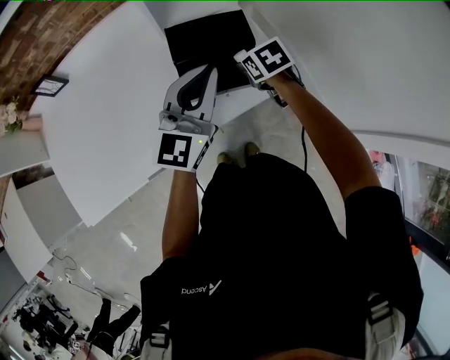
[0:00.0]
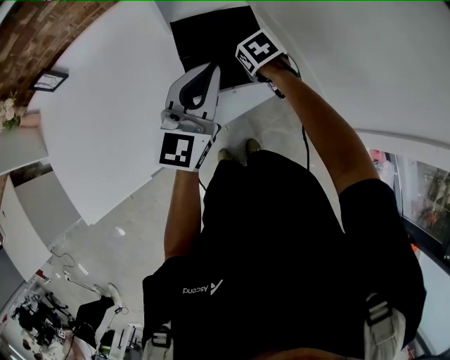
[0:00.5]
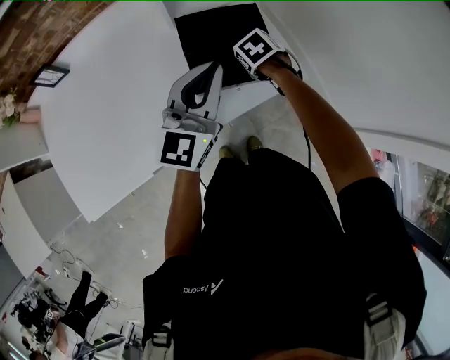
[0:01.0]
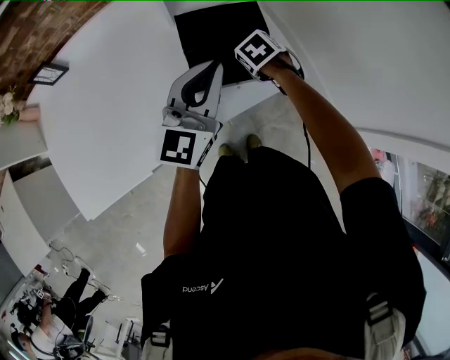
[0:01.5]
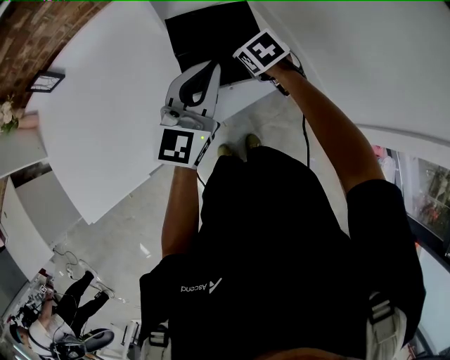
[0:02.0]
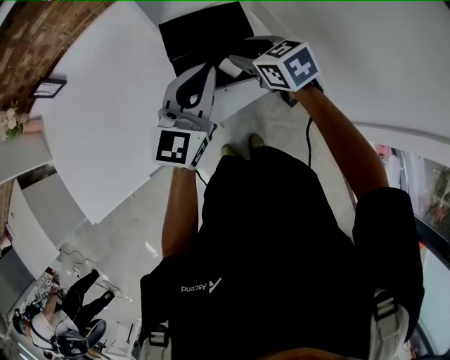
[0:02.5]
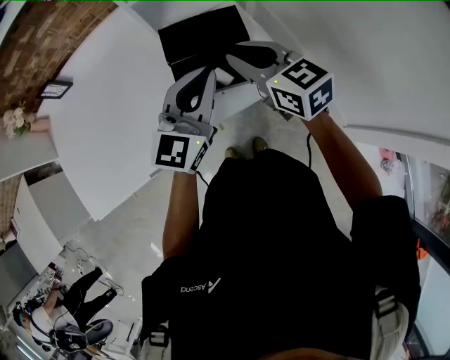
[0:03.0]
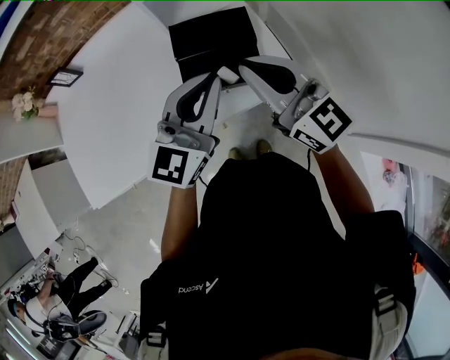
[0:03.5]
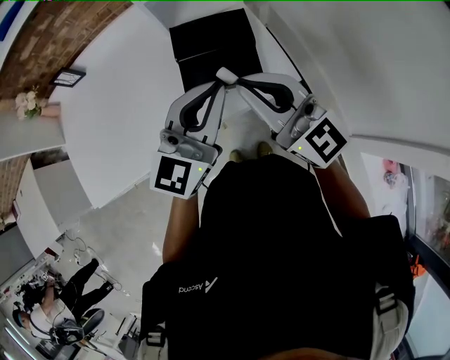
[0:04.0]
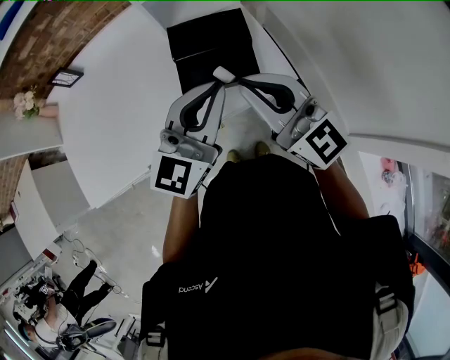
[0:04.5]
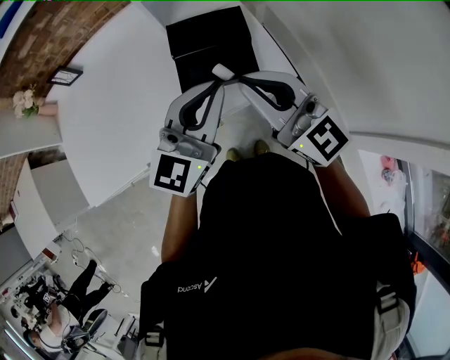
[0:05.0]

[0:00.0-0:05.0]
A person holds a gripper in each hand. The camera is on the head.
0:00.0 to 0:02.5: The right gripper moves upward, about 5 cm, and changes its angle by roughly 20 degrees.
0:02.5 to 0:05.0: The right gripper travels upward and backward by approximately 25 cm, points its fingers about 50 degrees further upward, and closes its fingers. Meanwhile the left gripper travels backward and upward by about 10 cm.

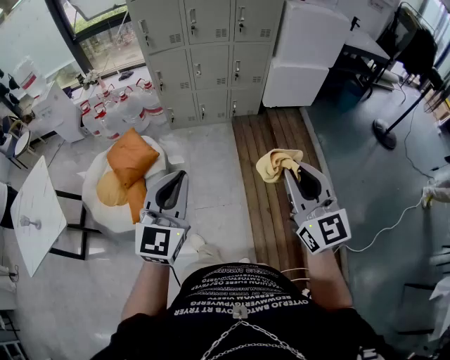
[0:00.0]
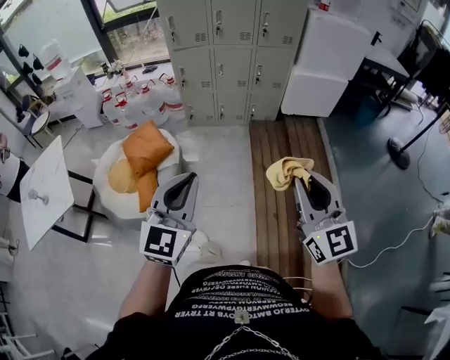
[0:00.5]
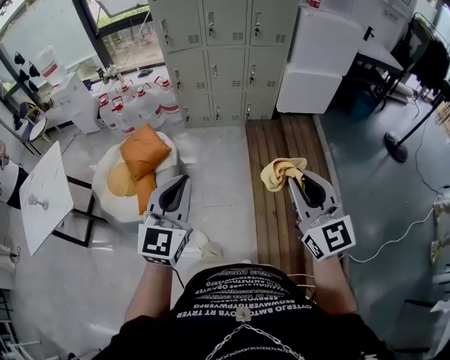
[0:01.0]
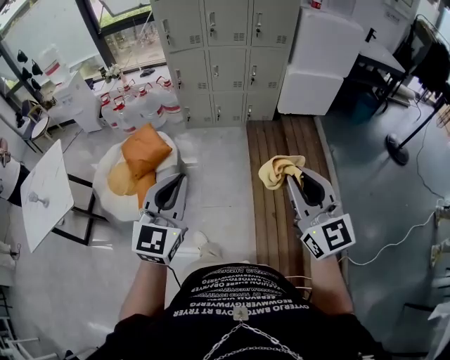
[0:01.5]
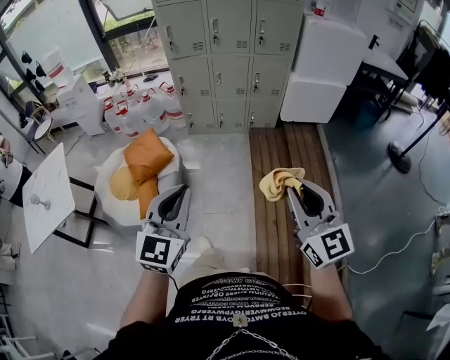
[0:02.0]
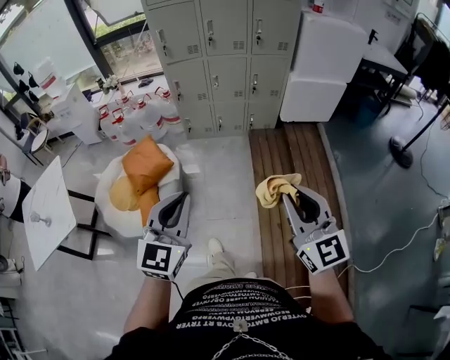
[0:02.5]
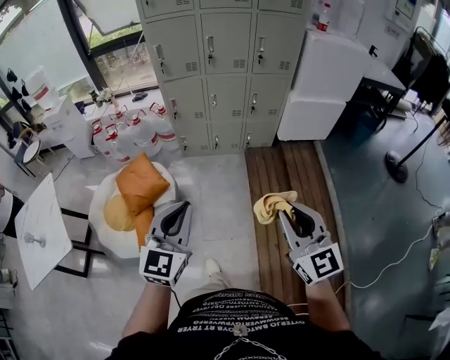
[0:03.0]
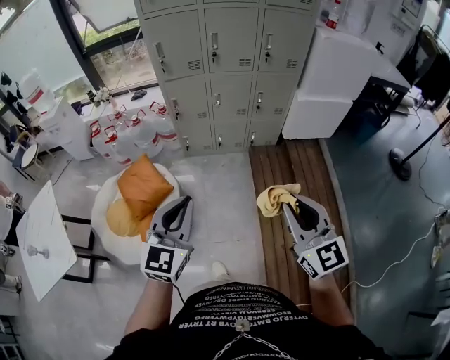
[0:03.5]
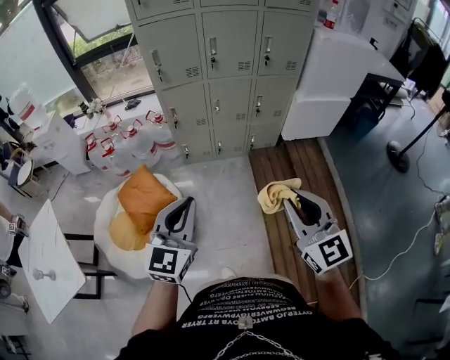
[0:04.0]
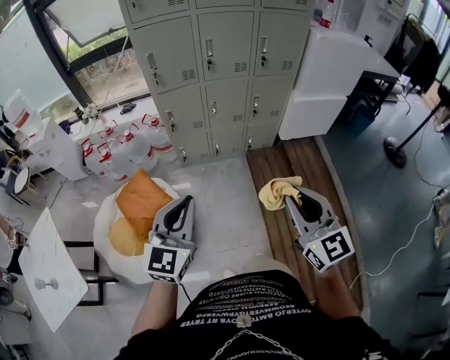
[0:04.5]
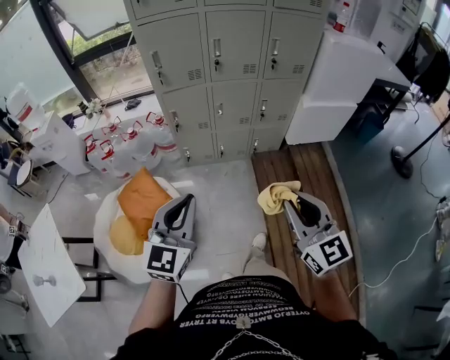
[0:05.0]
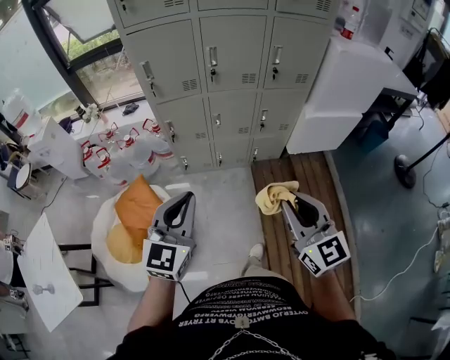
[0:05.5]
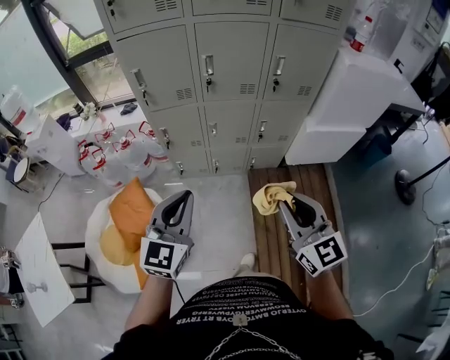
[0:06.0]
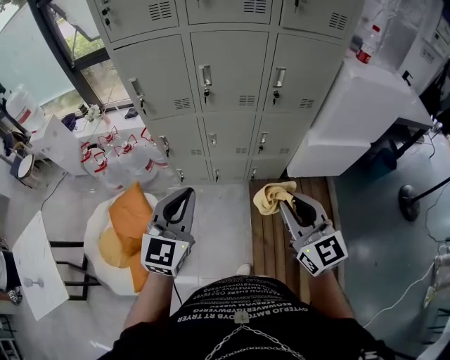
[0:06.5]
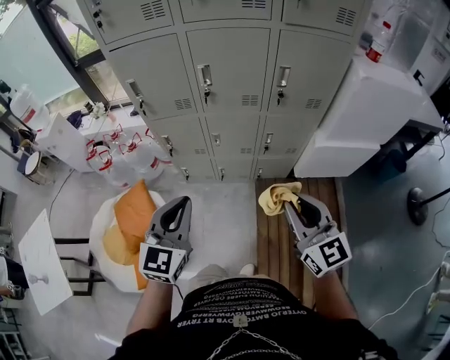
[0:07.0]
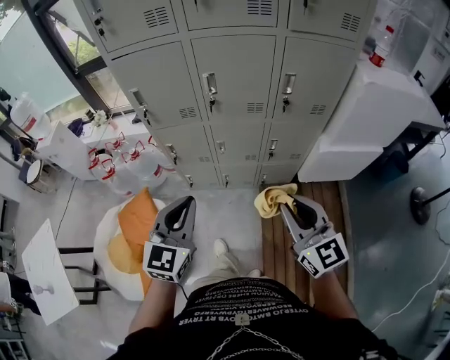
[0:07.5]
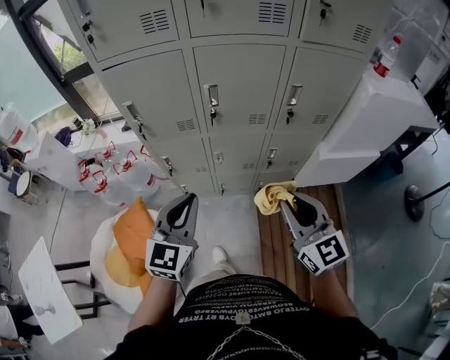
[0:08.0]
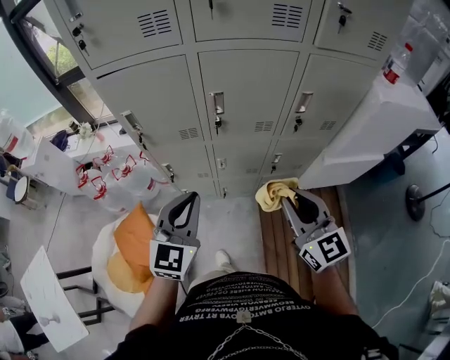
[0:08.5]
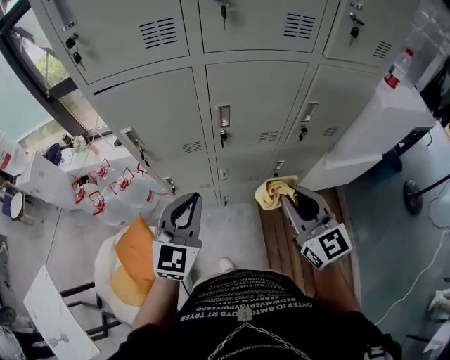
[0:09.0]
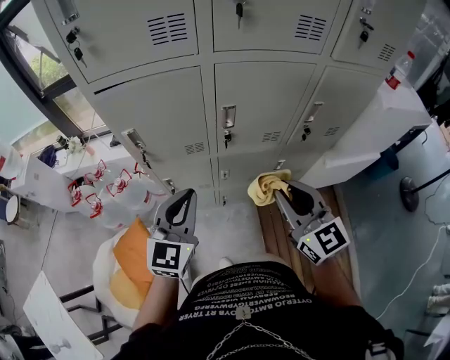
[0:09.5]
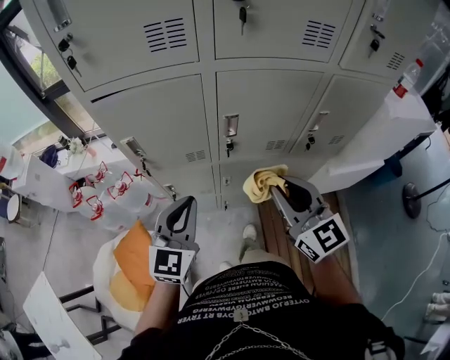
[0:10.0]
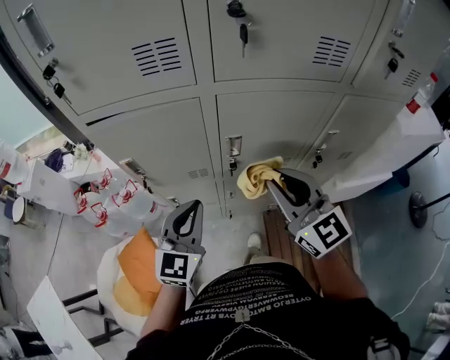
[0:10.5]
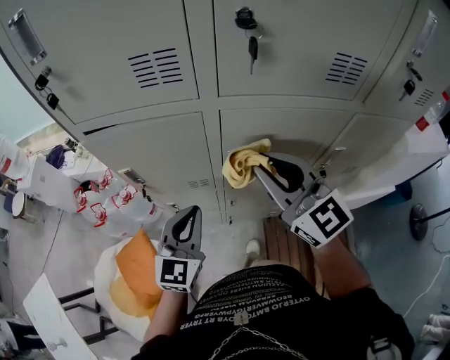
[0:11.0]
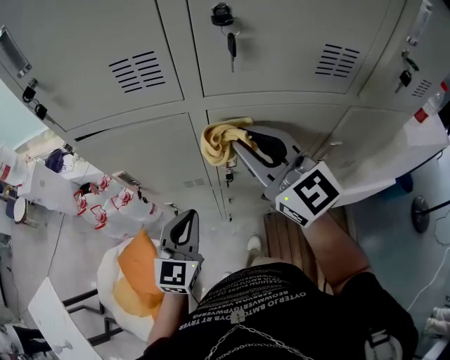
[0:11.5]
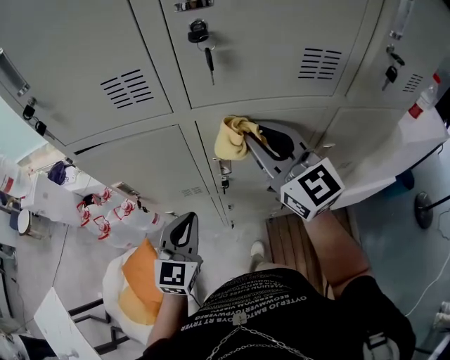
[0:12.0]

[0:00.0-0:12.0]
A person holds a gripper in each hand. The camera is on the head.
0:00.0 to 0:02.0: The left gripper shifts approximately 5 cm backward. Meanwhile the right gripper moves some 5 cm.
0:02.0 to 0:04.0: The left gripper goes some 30 cm forward. Meanwhile the right gripper heads forward and to the left, covering some 30 cm.
0:04.0 to 0:06.0: The two grippers go approximately 25 cm forward.
0:06.0 to 0:08.0: Both grippers travel together forward, some 20 cm.
0:08.0 to 0:10.0: The two grippers go some 20 cm forward and to the left.
0:10.0 to 0:12.0: The left gripper heads forward, covering roughly 10 cm. Meanwhile the right gripper travels forward and upward by roughly 20 cm.

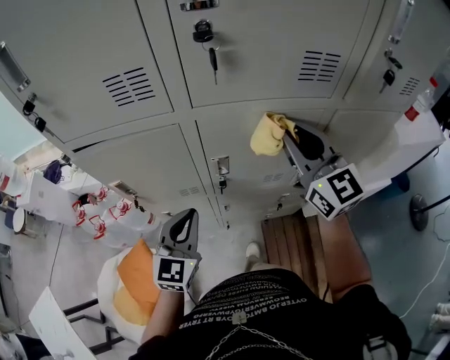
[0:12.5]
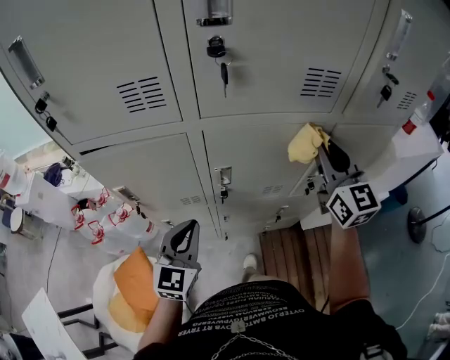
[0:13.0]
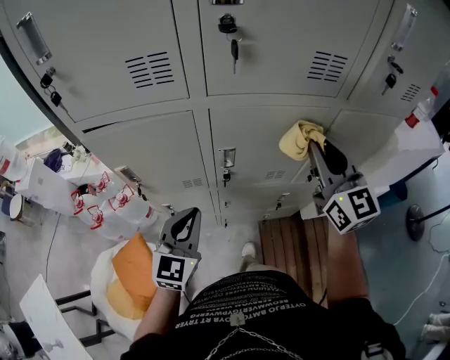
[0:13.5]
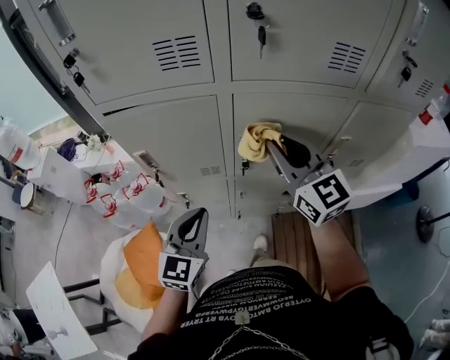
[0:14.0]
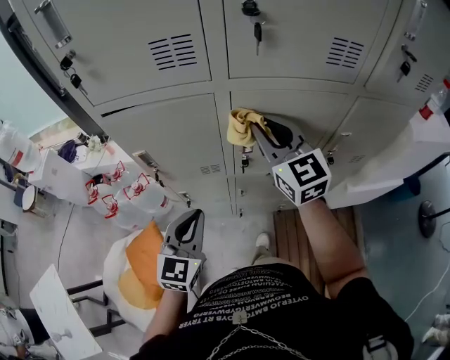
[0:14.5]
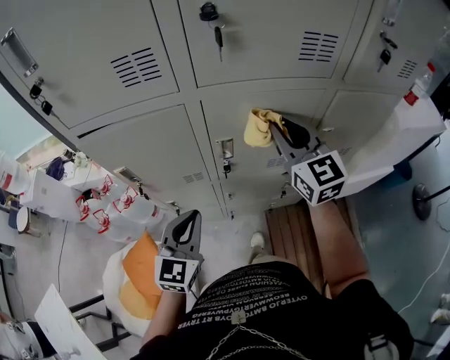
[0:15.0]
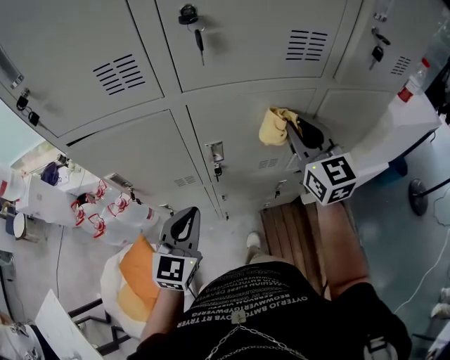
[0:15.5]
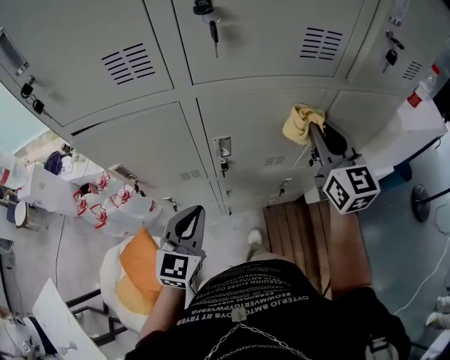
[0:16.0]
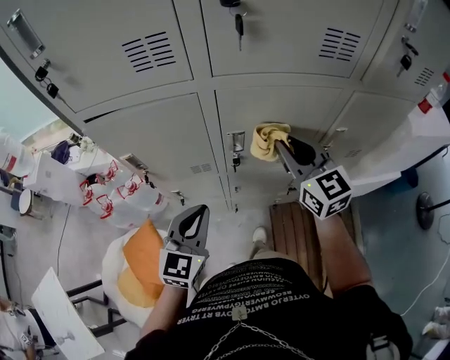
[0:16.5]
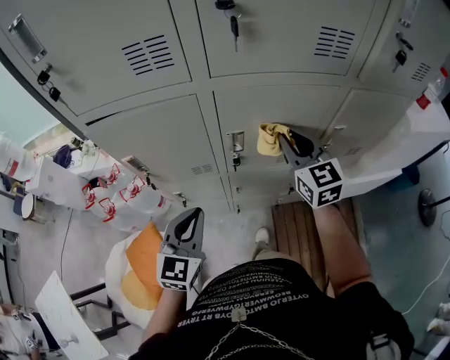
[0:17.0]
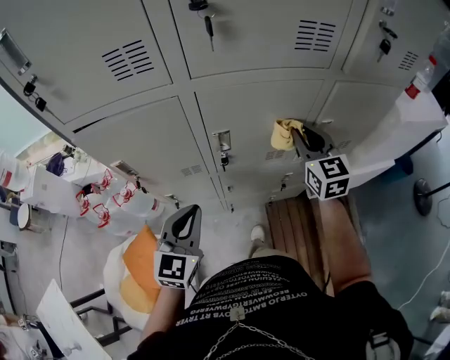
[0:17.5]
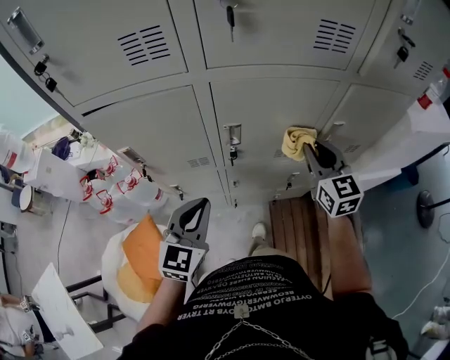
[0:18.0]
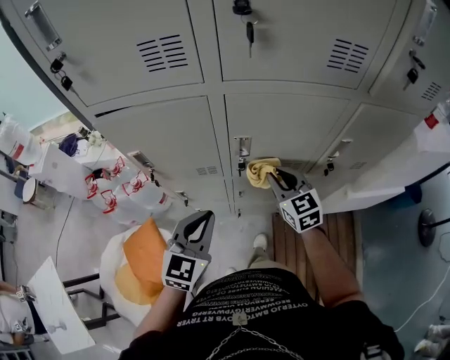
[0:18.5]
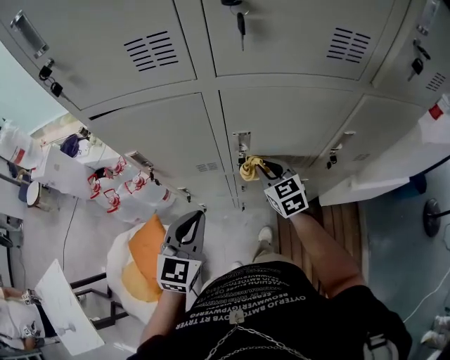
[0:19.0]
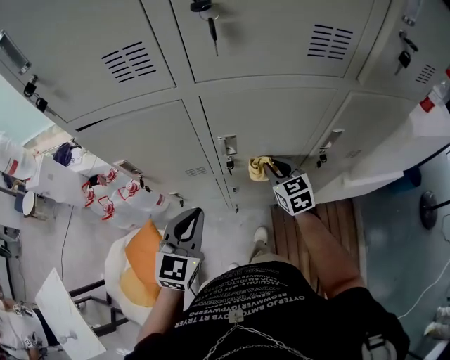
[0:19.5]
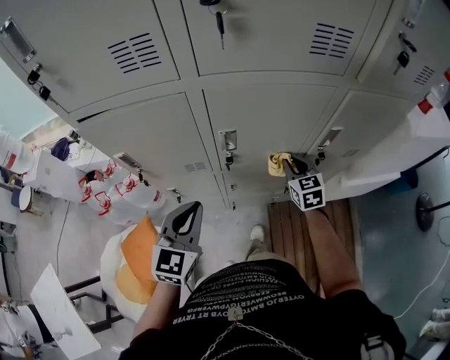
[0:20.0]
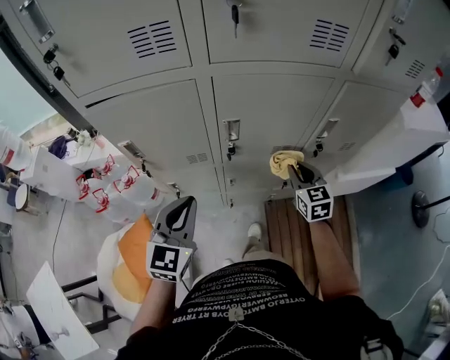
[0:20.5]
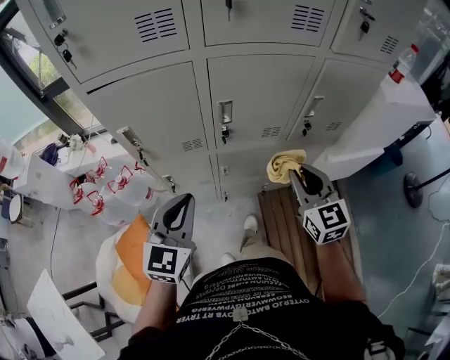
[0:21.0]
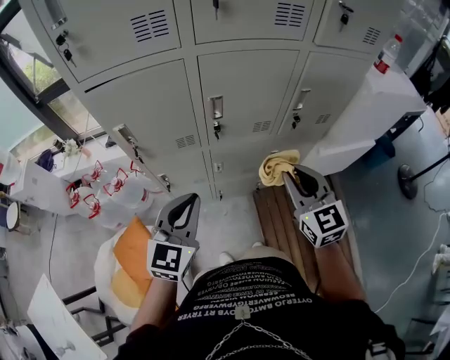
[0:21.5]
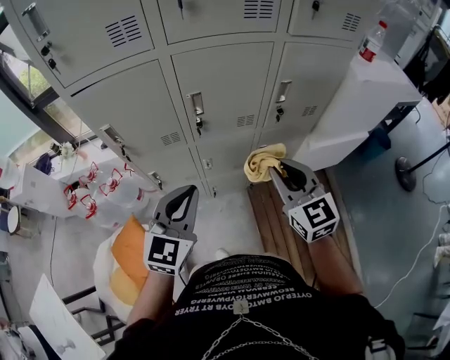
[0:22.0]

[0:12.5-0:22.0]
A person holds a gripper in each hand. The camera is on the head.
0:12.5 to 0:14.5: The right gripper moves to the left, approximately 10 cm; the left gripper is displaced backward by roughly 5 cm.
0:14.5 to 0:16.5: The right gripper goes about 10 cm to the right and downward.
0:16.5 to 0:18.0: The right gripper shifts about 10 cm to the right and downward.
0:18.0 to 0:20.0: The right gripper moves downward, about 15 cm.
0:20.0 to 0:22.0: The left gripper shifts some 15 cm backward, to the right and upward. Meanwhile the right gripper shifts about 30 cm backward and upward.
